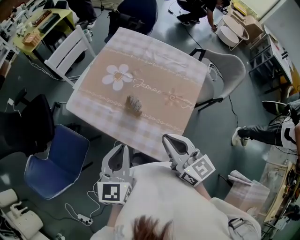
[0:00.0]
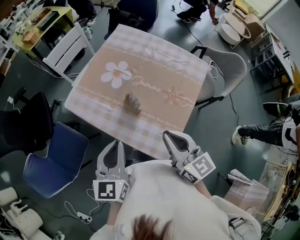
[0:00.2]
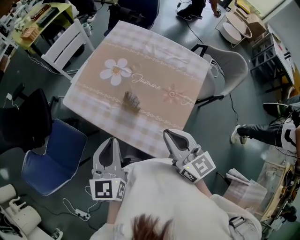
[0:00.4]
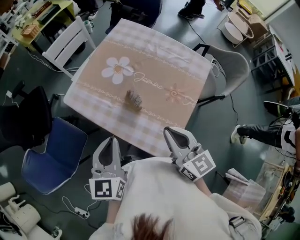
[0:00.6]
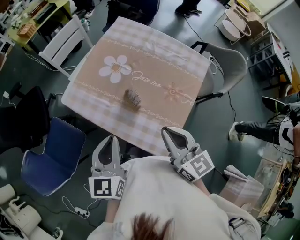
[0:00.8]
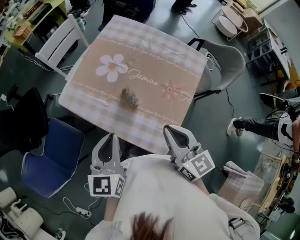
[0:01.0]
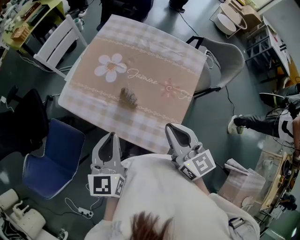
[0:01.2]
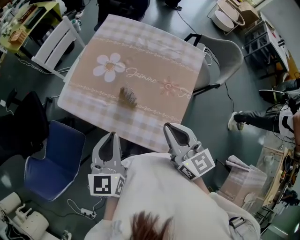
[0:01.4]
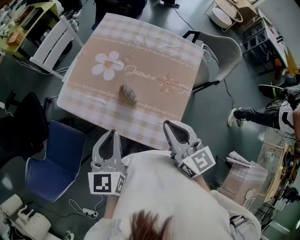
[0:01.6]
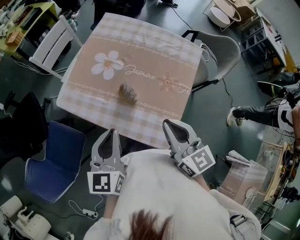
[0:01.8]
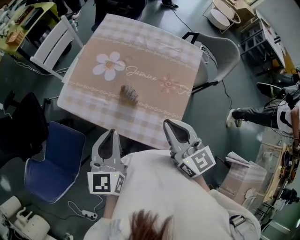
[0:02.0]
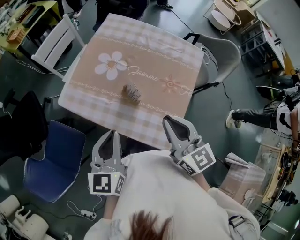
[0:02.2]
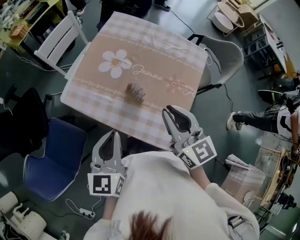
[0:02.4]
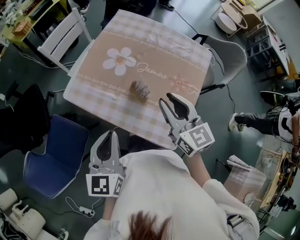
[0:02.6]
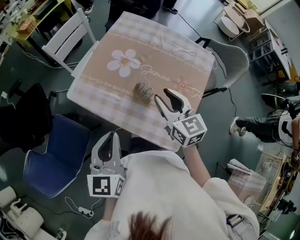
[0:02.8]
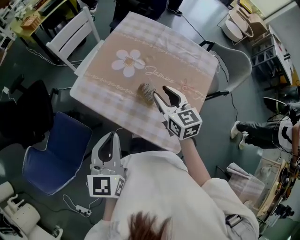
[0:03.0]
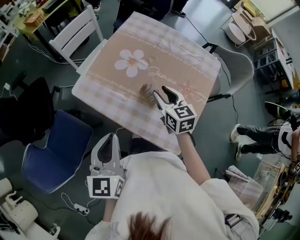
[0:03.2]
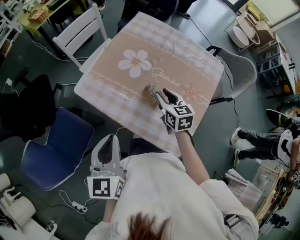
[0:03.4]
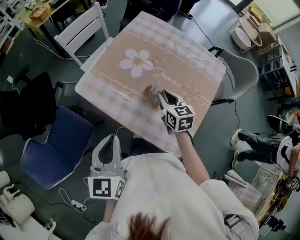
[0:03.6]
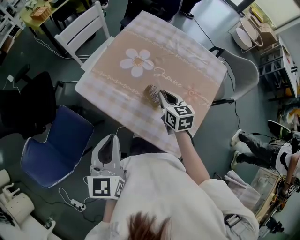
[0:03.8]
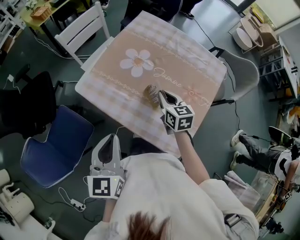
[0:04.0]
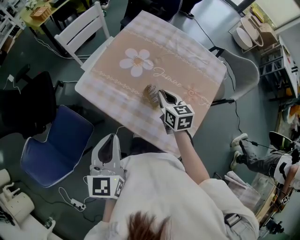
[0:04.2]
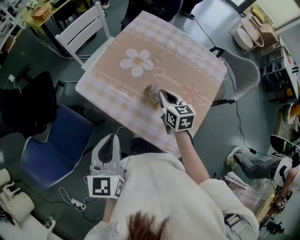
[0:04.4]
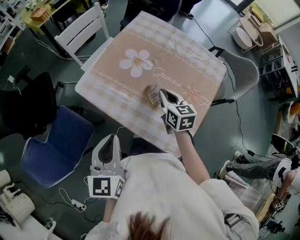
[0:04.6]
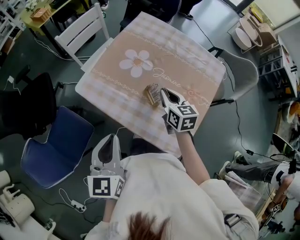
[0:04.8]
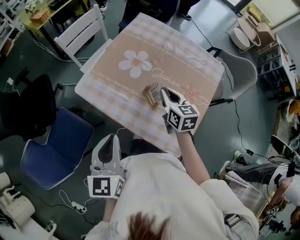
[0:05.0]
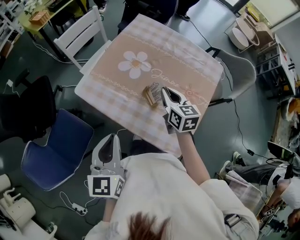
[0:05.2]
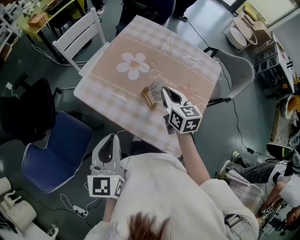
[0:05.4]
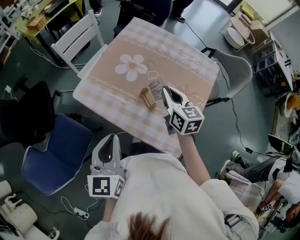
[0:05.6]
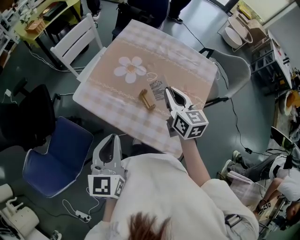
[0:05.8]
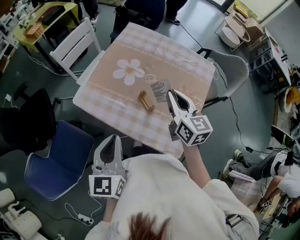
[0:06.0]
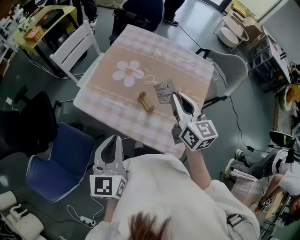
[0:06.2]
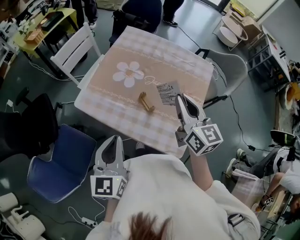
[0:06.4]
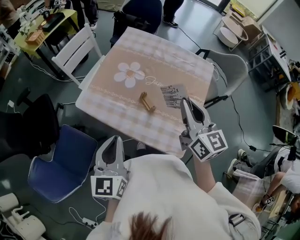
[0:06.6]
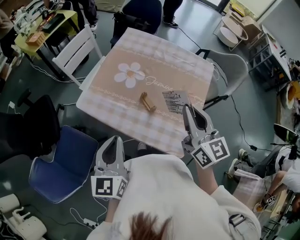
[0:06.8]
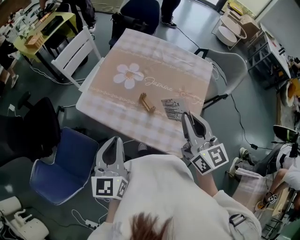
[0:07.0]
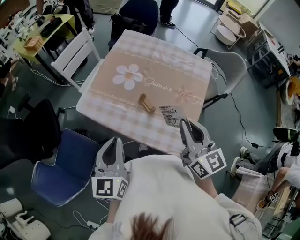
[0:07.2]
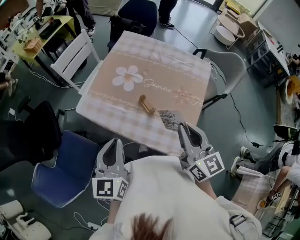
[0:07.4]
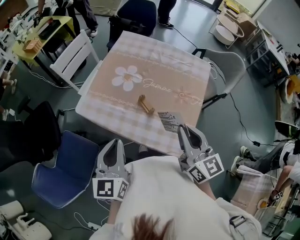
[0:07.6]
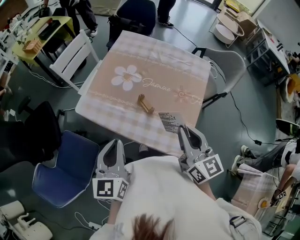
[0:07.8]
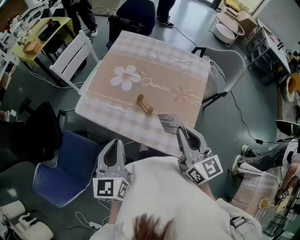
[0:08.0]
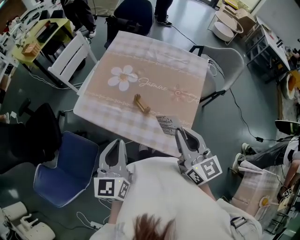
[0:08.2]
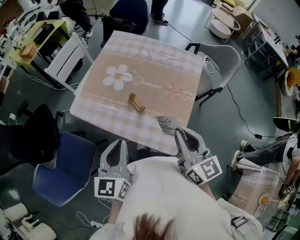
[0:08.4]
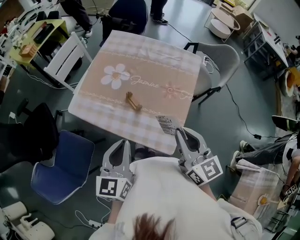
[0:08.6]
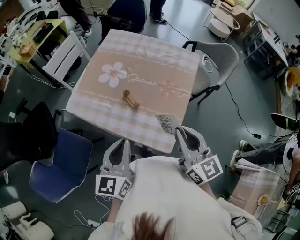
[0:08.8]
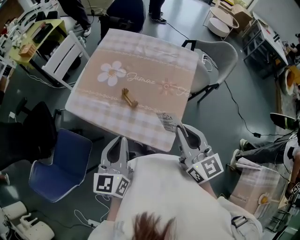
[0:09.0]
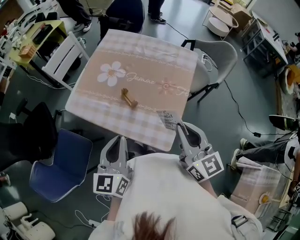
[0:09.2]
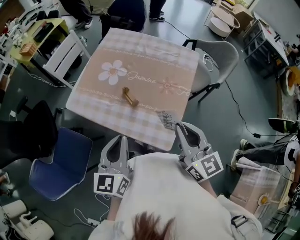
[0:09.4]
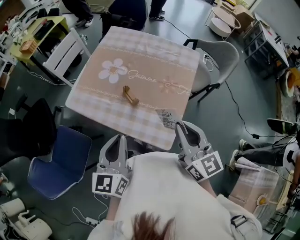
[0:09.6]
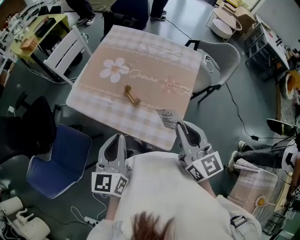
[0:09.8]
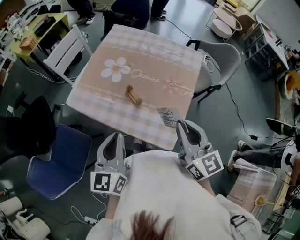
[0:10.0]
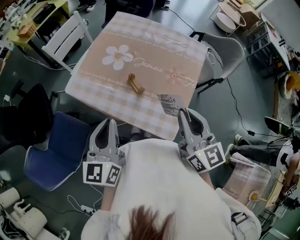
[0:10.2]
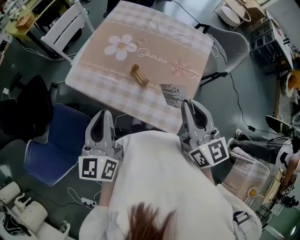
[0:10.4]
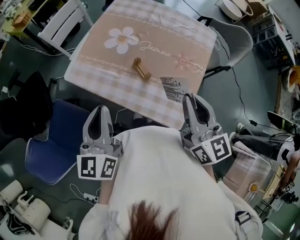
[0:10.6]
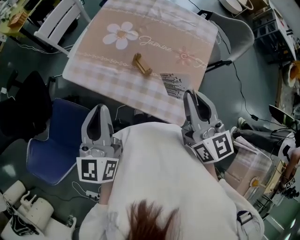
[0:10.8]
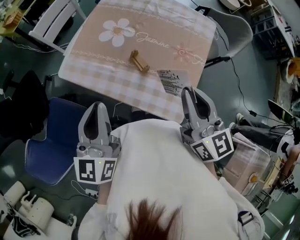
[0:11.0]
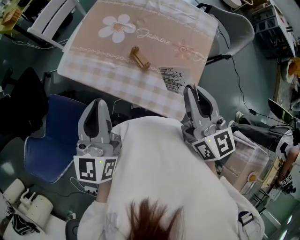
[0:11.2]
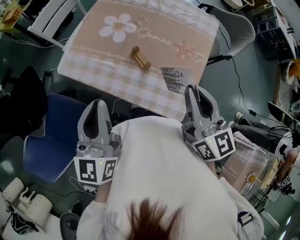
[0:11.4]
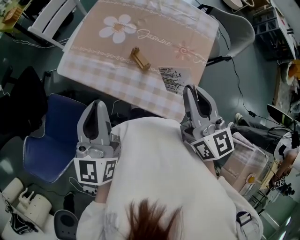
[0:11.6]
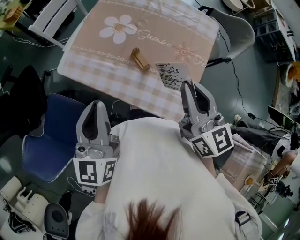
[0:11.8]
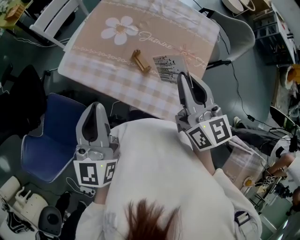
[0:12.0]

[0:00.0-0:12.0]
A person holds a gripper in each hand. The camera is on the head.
0:00.0 to 0:01.6: The grippers move only a little.
0:01.6 to 0:03.0: The left gripper is displaced to the left by roughly 10 cm; the right gripper shifts approximately 15 cm forward, downward and to the left, and opens its fingers.
0:03.0 to 0:04.4: The right gripper travels downward by about 10 cm, and closes its fingers.
0:04.4 to 0:06.0: The right gripper moves upward, approximately 15 cm.
0:06.0 to 0:07.6: The right gripper travels backward by about 15 cm.
0:07.6 to 0:09.0: Both grippers move to the right, roughly 10 cm.
0:09.0 to 0:10.4: The left gripper travels to the left by about 10 cm; the right gripper moves approximately 5 cm.
0:10.4 to 0:12.0: The right gripper shifts some 5 cm forward.

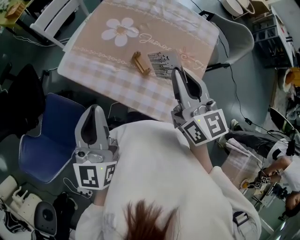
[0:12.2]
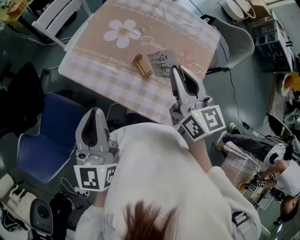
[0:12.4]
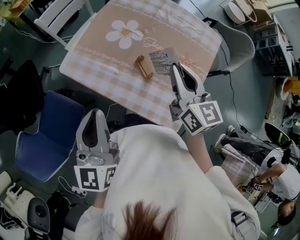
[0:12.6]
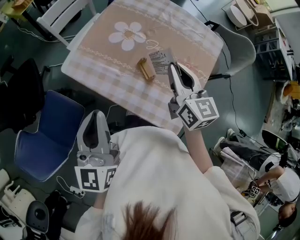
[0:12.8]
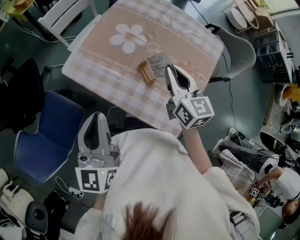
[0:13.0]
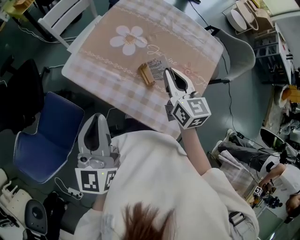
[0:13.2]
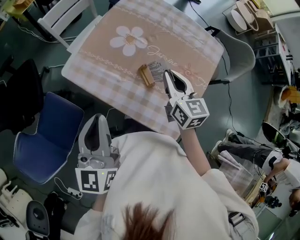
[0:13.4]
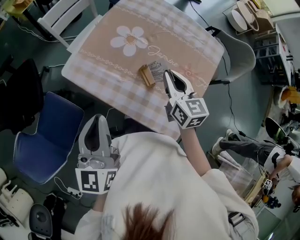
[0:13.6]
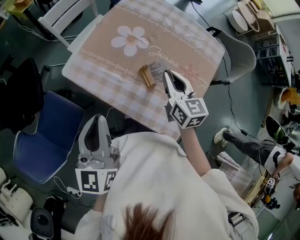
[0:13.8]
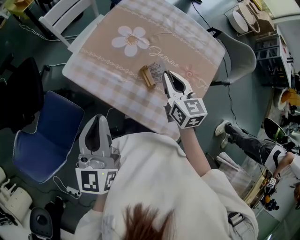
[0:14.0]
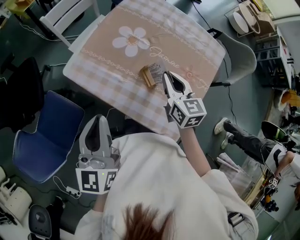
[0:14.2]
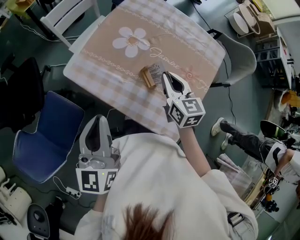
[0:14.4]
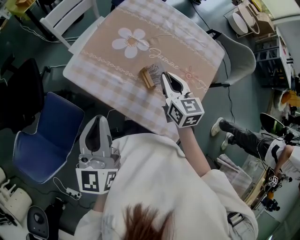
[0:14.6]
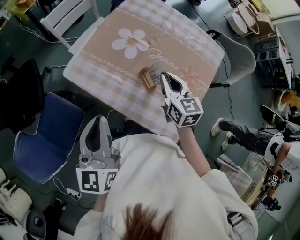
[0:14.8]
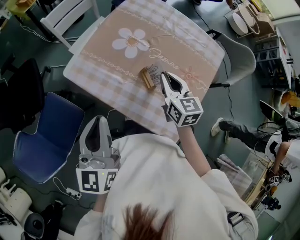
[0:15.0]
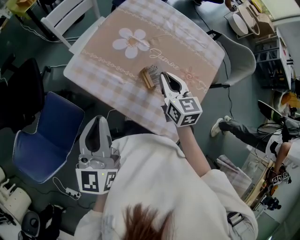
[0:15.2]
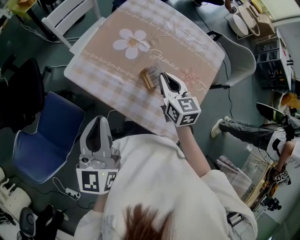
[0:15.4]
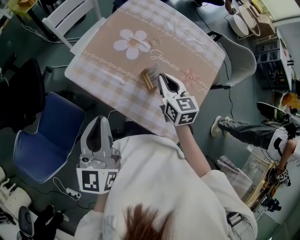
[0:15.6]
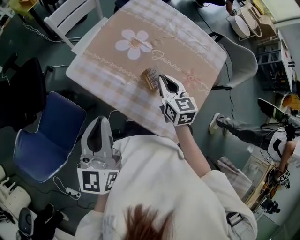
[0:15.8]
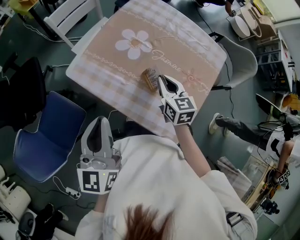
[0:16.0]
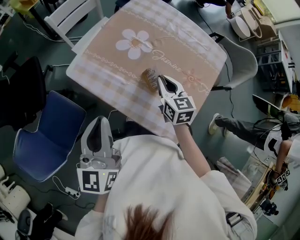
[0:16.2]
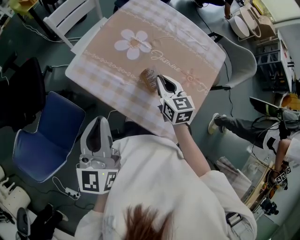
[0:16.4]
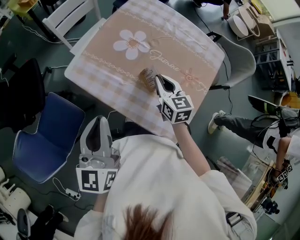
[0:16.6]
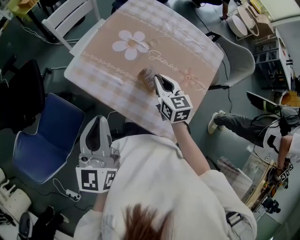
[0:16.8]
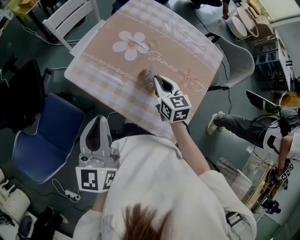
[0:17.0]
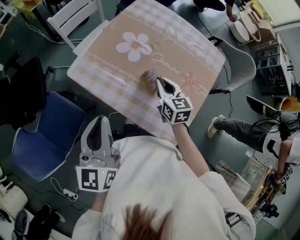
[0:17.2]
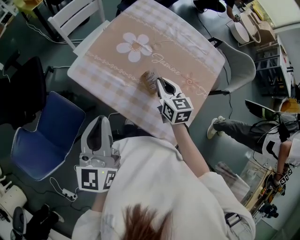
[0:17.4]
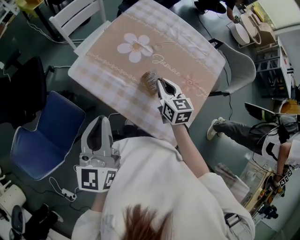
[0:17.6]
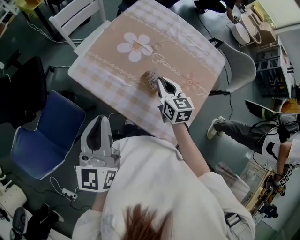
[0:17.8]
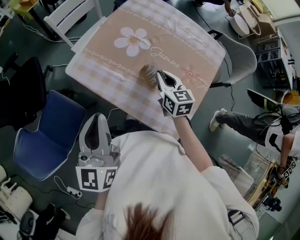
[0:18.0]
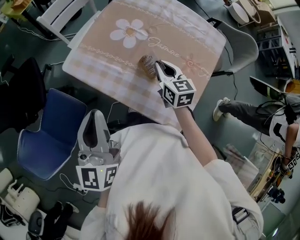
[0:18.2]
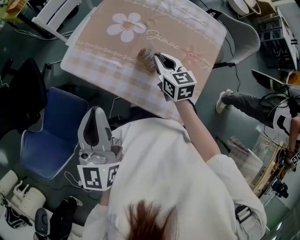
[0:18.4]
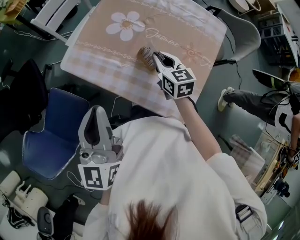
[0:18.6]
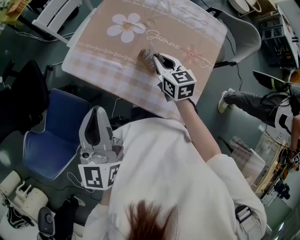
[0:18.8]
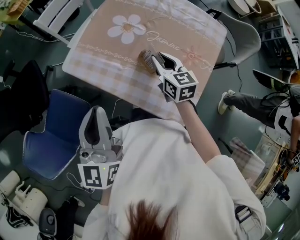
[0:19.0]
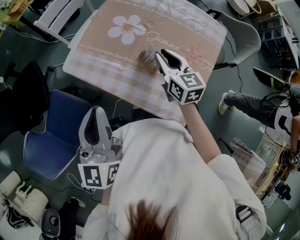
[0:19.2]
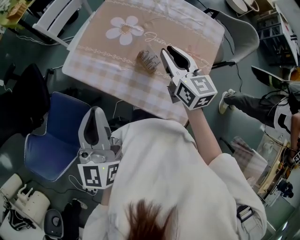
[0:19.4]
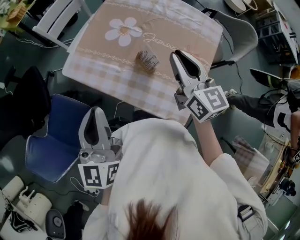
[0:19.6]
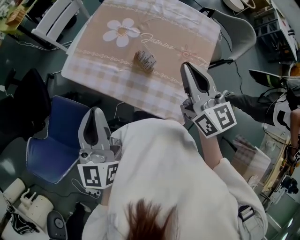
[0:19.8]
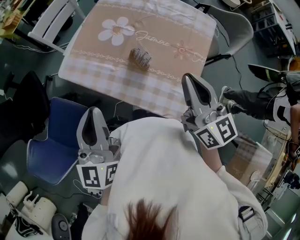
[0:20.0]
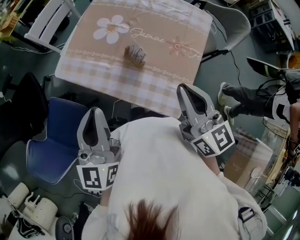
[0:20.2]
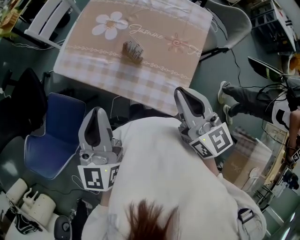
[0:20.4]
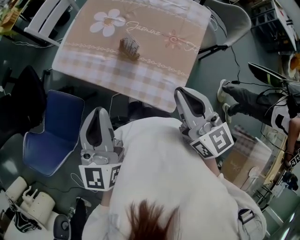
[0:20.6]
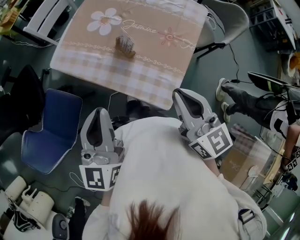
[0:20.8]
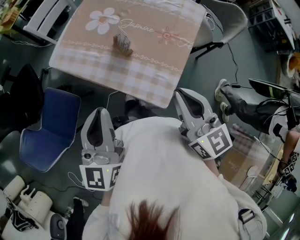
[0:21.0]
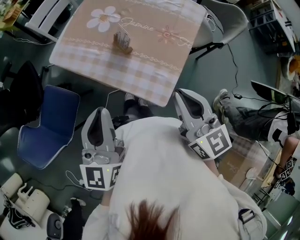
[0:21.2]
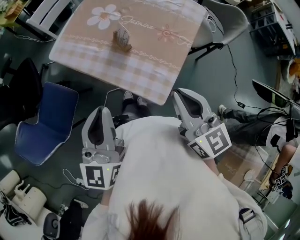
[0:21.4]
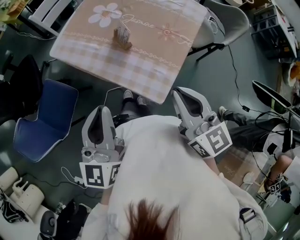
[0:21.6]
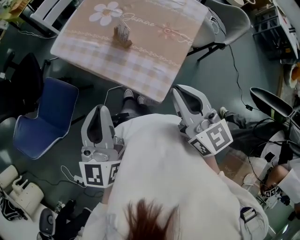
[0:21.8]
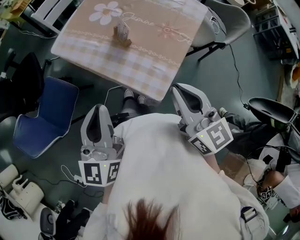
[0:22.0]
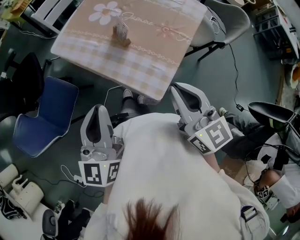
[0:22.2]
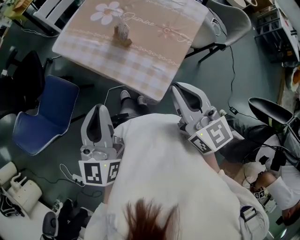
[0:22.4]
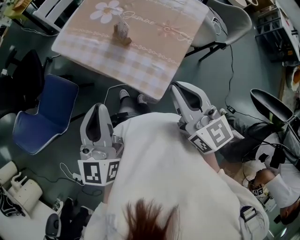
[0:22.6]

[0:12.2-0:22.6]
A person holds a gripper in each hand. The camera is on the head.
0:12.2 to 0:13.6: The right gripper travels downward and forward by approximately 15 cm.
0:13.6 to 0:15.2: The grippers move only a little.
0:15.2 to 0:18.2: The grippers move only a little.
0:18.2 to 0:19.6: The right gripper moves upward, roughly 15 cm, and changes its angle by approximately 20 degrees.
0:19.6 to 0:21.2: The right gripper travels backward by about 20 cm; the left gripper goes approximately 15 cm backward and to the right.
0:21.2 to 0:22.6: The left gripper shifts some 5 cm backward.

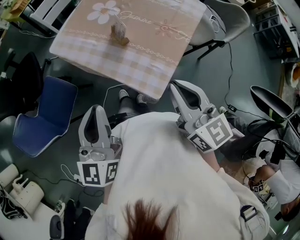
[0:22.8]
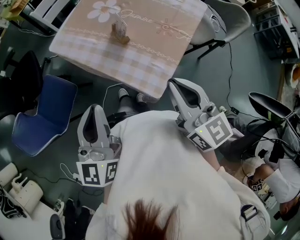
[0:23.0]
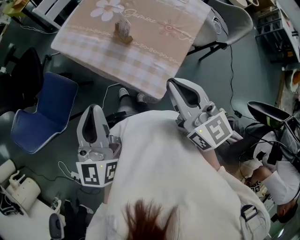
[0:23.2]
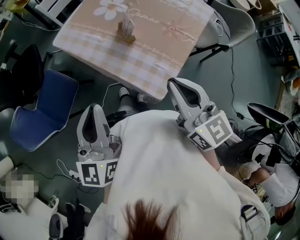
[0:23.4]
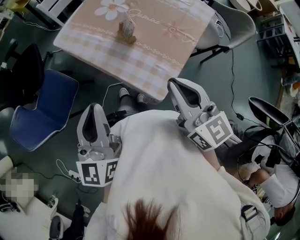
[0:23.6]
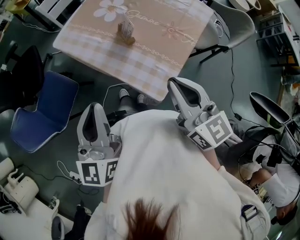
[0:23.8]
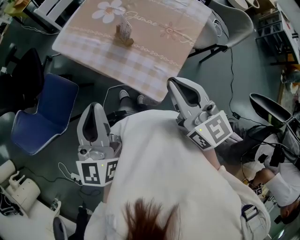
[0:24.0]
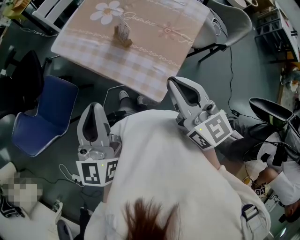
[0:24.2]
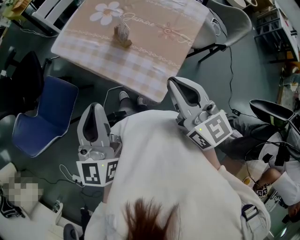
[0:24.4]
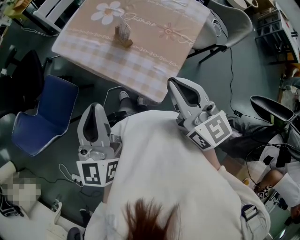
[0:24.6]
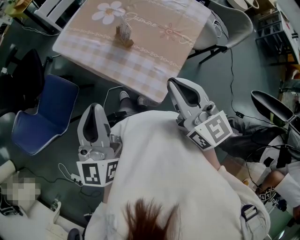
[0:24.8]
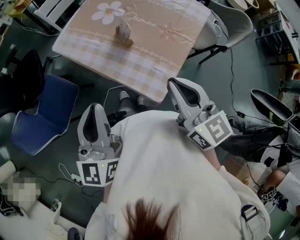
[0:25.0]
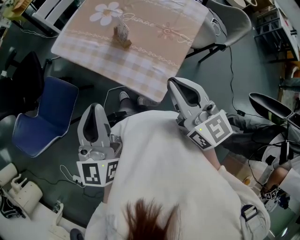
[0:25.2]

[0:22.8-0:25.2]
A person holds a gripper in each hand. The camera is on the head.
0:22.8 to 0:24.0: The grippers make only small movements.
0:24.0 to 0:25.2: The two grippers keep their place.
